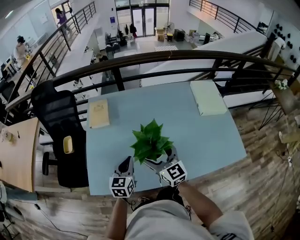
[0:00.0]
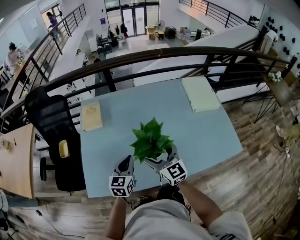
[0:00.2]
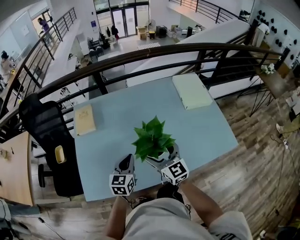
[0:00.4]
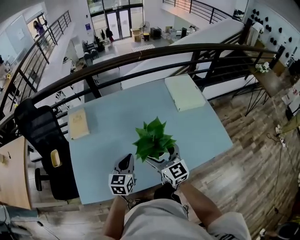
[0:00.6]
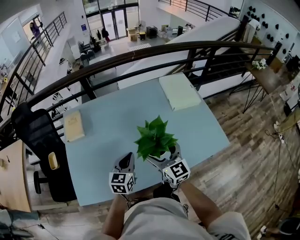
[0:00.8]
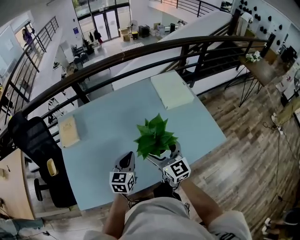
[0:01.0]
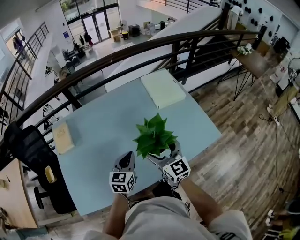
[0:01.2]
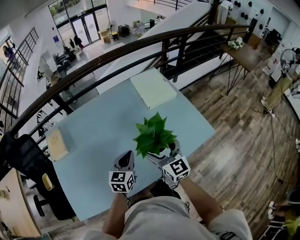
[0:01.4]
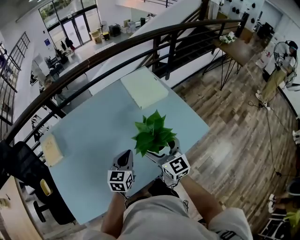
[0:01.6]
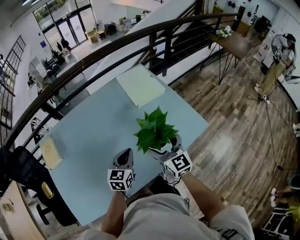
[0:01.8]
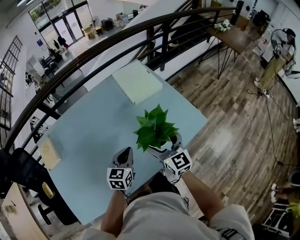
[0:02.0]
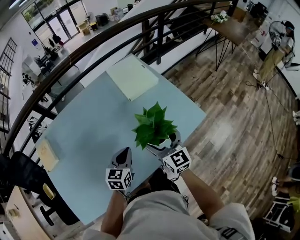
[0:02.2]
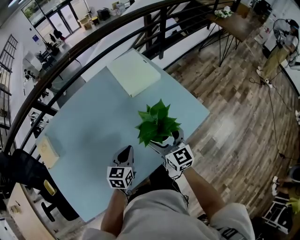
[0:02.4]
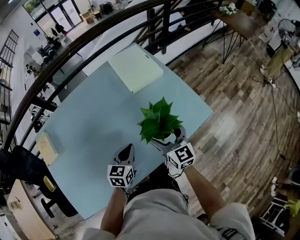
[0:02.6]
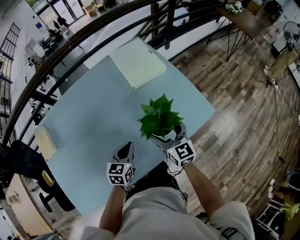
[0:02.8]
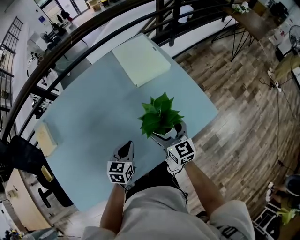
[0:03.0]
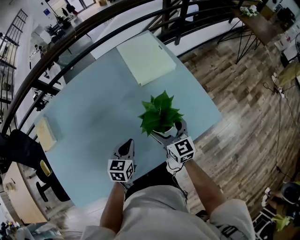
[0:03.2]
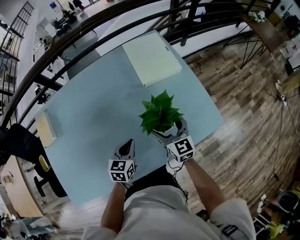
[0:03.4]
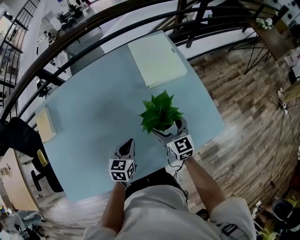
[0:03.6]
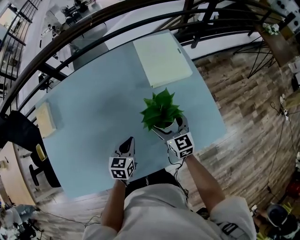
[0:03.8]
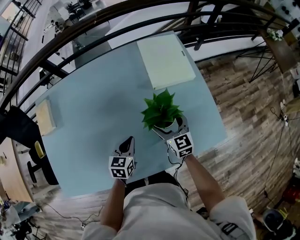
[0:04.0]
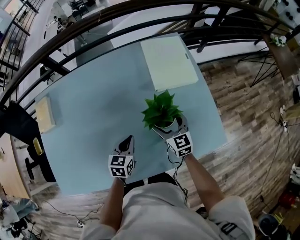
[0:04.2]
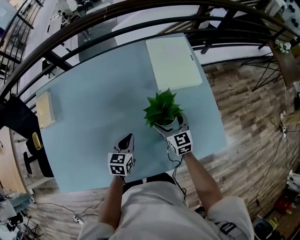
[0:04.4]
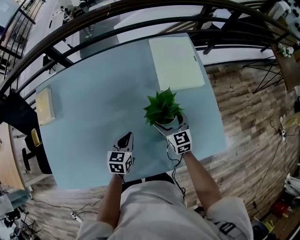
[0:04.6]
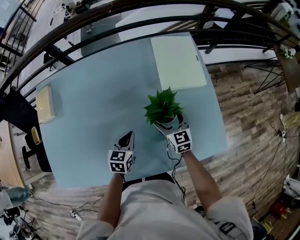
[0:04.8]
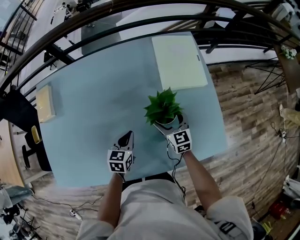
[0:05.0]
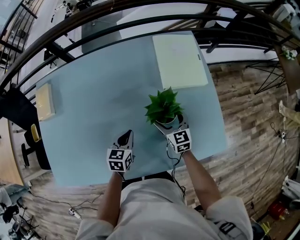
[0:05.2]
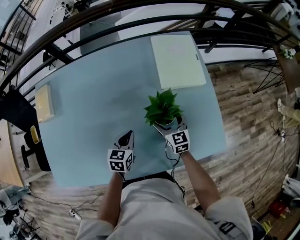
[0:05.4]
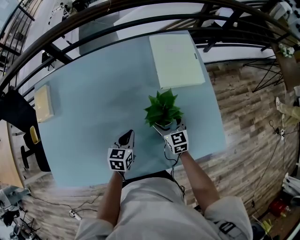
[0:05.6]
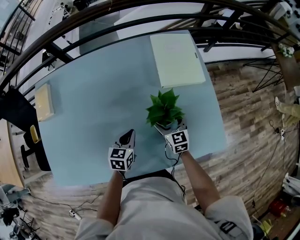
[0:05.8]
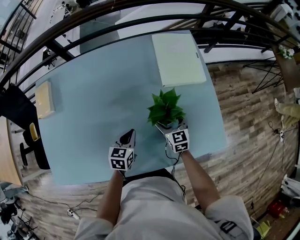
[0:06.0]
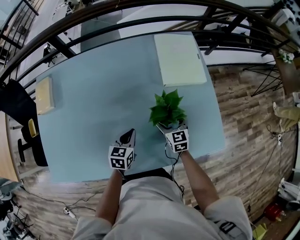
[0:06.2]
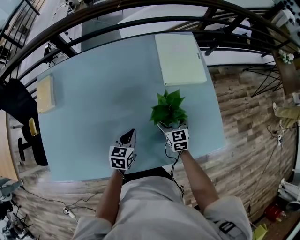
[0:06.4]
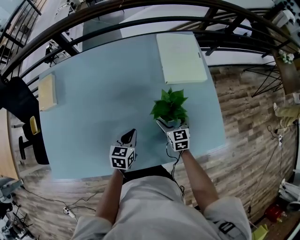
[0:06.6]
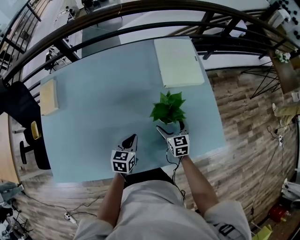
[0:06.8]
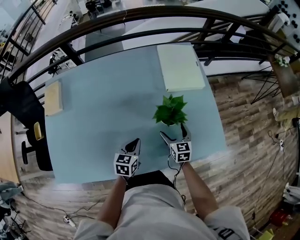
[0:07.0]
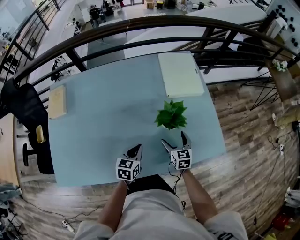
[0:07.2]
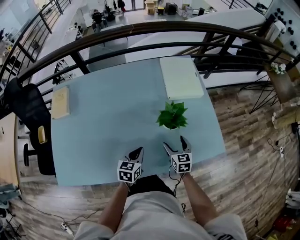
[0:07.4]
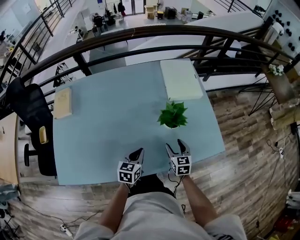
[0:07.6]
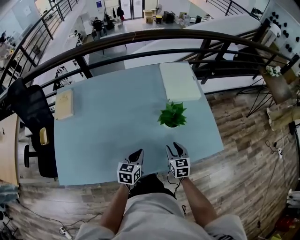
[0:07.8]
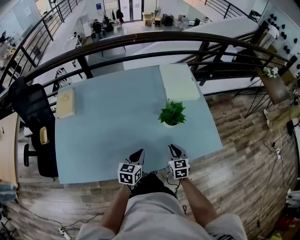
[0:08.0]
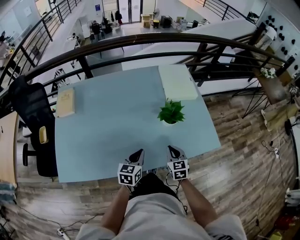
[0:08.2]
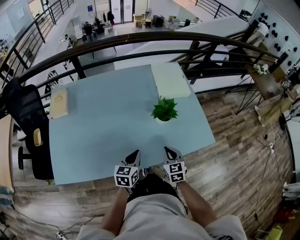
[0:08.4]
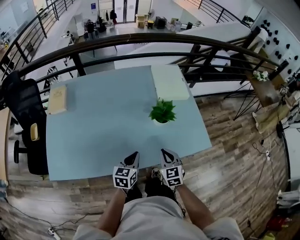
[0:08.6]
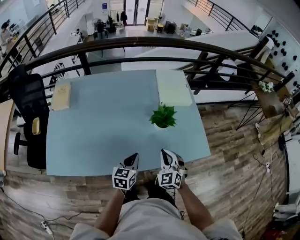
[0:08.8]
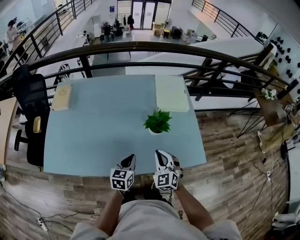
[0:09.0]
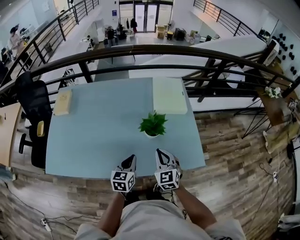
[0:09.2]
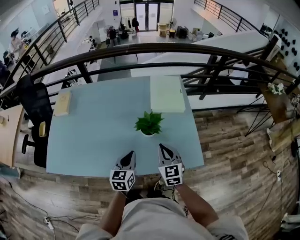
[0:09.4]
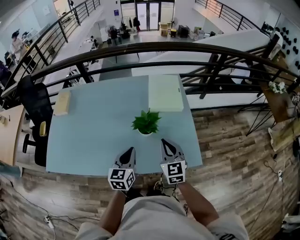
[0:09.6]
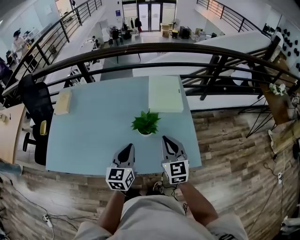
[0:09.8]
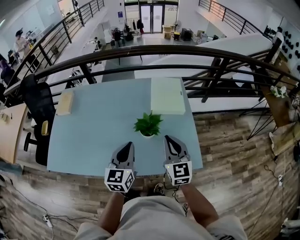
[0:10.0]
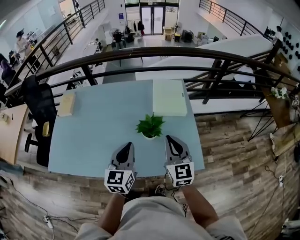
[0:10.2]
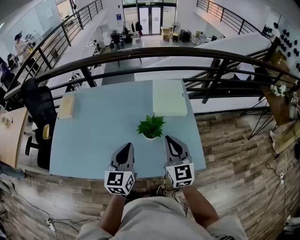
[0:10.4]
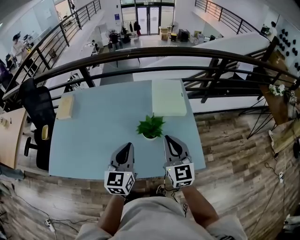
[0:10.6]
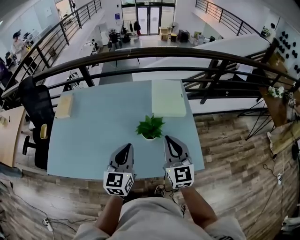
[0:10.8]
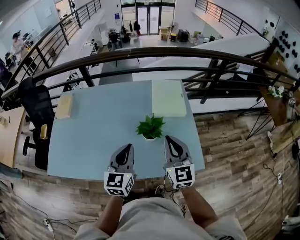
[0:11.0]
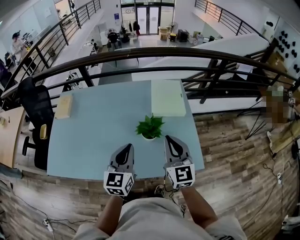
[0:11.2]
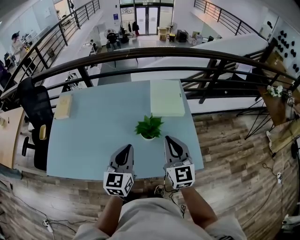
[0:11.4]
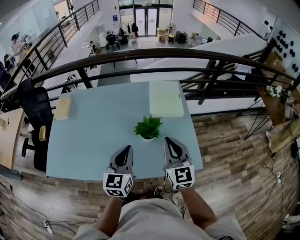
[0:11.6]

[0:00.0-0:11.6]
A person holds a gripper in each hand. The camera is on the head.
0:00.0 to 0:01.4: The right gripper moves about 30 cm, and turns by some 30 degrees, while the left gripper shifts by about 25 cm, and rotates about 30 degrees.
0:01.4 to 0:02.8: The right gripper heads to the right, downward and forward, covering about 15 cm; the left gripper travels downward and to the right by roughly 10 cm.
0:02.8 to 0:04.4: The right gripper shifts some 15 cm forward and downward, and changes its angle by some 20 degrees; the left gripper moves forward and downward, about 10 cm, and changes its angle by about 20 degrees.
0:04.4 to 0:05.8: The grippers move only a little.
0:05.8 to 0:07.2: The grippers both shift backward by some 10 cm.
0:07.2 to 0:08.8: The right gripper goes some 15 cm backward and upward, rotates around the line of its fingers by about 40 degrees, counterclockwise from behind, and closes up, while the left gripper travels backward and upward by approximately 10 cm.
0:08.8 to 0:10.2: The left gripper is displaced upward and to the right by roughly 20 cm, and turns by approximately 30 degrees, while the right gripper is displaced upward, to the right and forward by some 20 cm, and turns by some 40 degrees.
0:10.2 to 0:11.6: There are only small adjustments of the grippers.

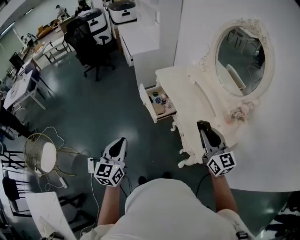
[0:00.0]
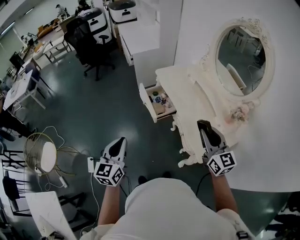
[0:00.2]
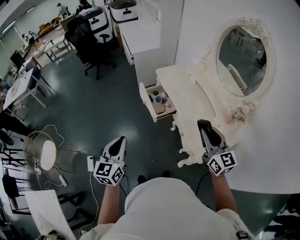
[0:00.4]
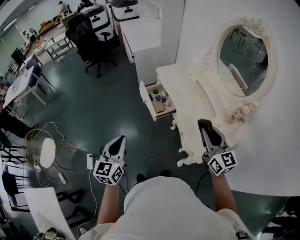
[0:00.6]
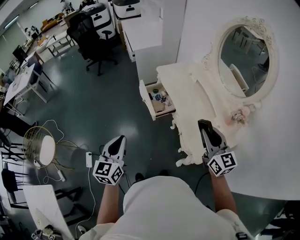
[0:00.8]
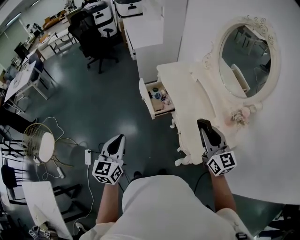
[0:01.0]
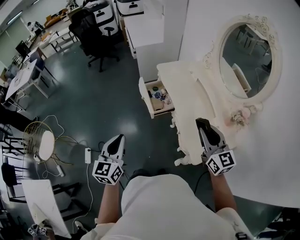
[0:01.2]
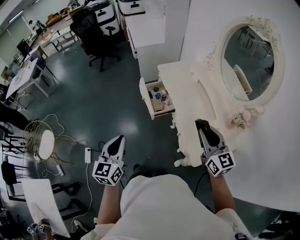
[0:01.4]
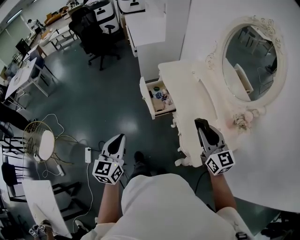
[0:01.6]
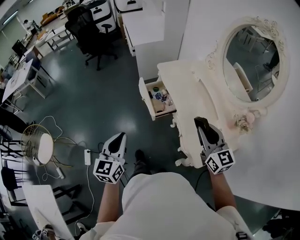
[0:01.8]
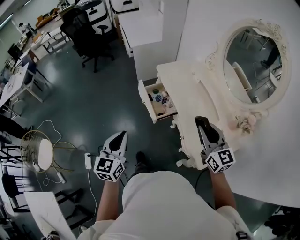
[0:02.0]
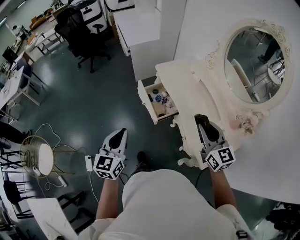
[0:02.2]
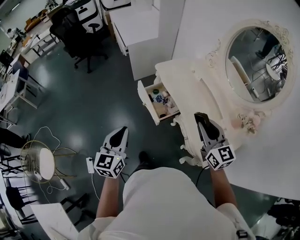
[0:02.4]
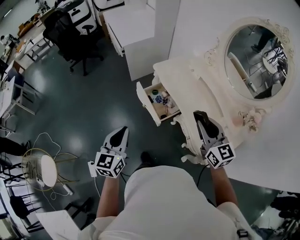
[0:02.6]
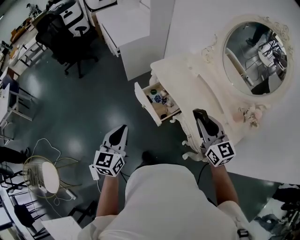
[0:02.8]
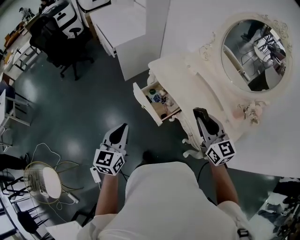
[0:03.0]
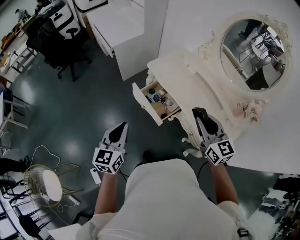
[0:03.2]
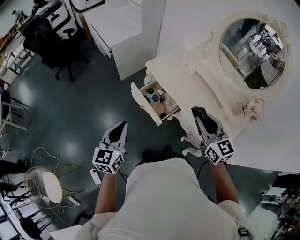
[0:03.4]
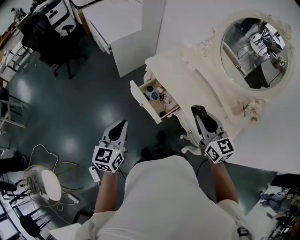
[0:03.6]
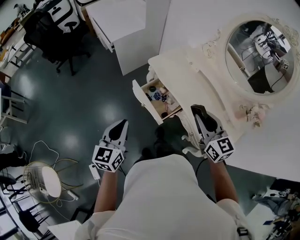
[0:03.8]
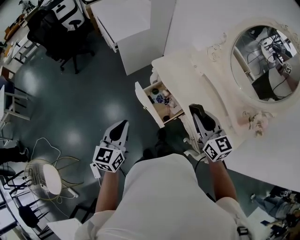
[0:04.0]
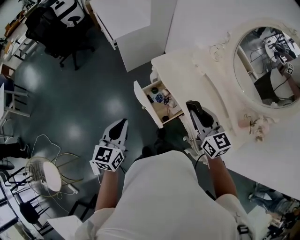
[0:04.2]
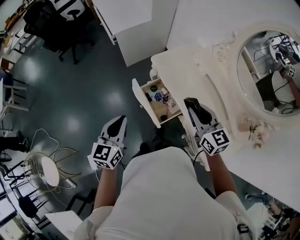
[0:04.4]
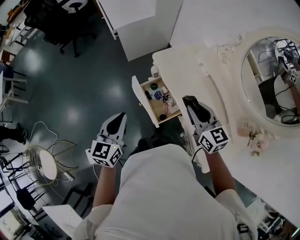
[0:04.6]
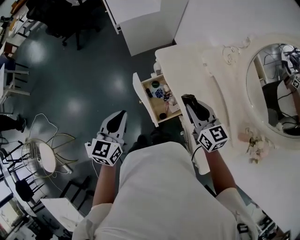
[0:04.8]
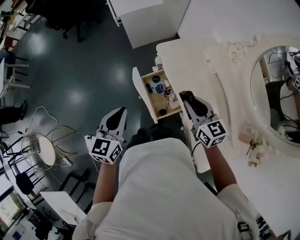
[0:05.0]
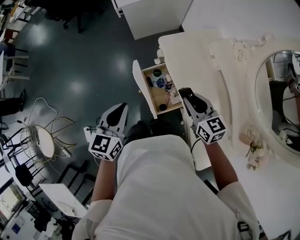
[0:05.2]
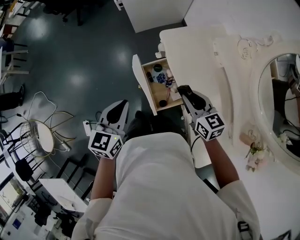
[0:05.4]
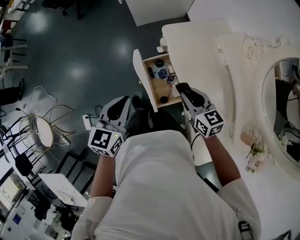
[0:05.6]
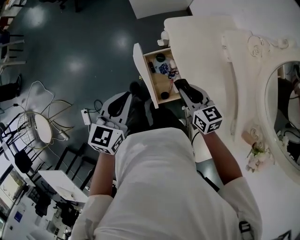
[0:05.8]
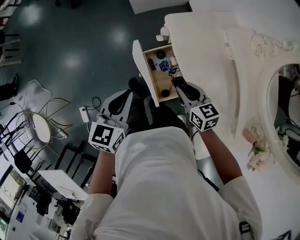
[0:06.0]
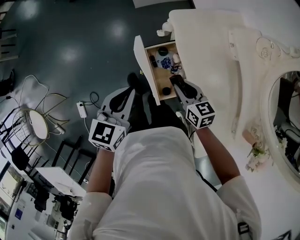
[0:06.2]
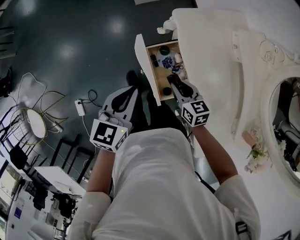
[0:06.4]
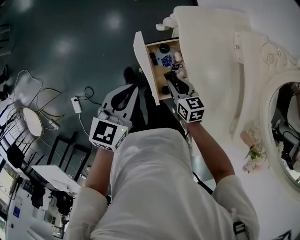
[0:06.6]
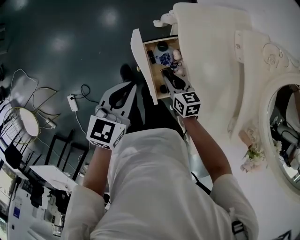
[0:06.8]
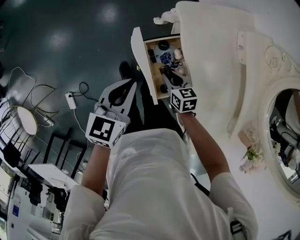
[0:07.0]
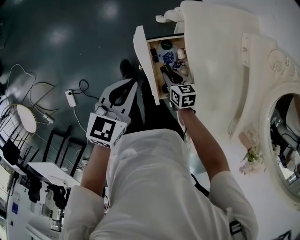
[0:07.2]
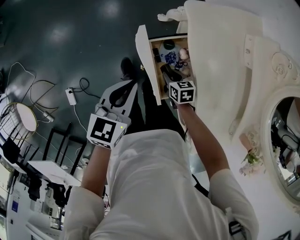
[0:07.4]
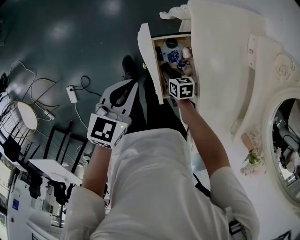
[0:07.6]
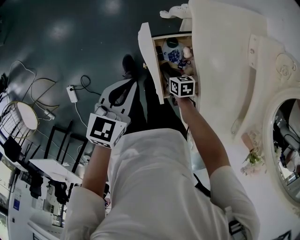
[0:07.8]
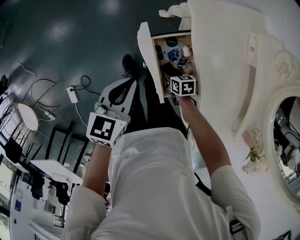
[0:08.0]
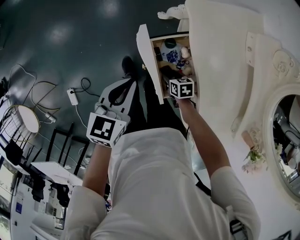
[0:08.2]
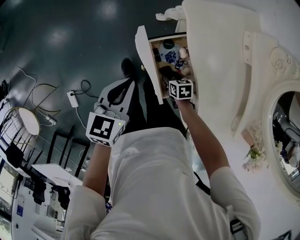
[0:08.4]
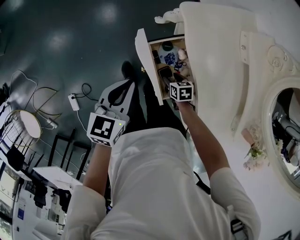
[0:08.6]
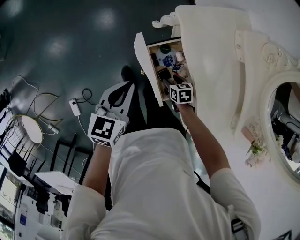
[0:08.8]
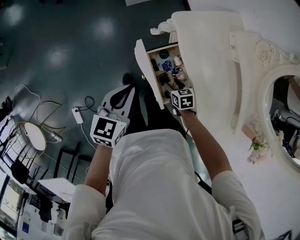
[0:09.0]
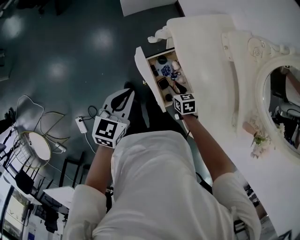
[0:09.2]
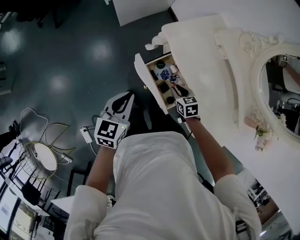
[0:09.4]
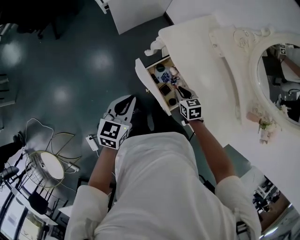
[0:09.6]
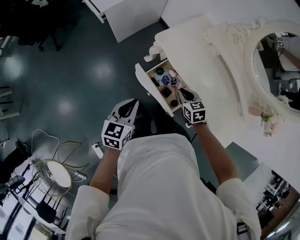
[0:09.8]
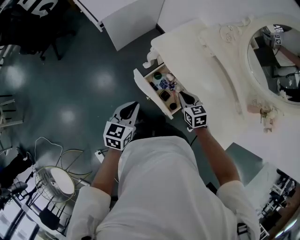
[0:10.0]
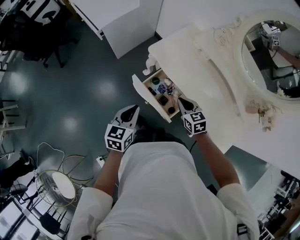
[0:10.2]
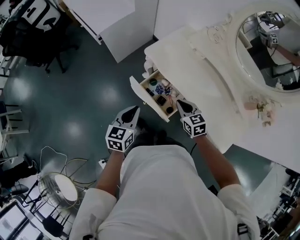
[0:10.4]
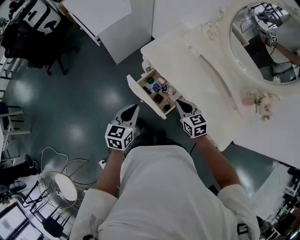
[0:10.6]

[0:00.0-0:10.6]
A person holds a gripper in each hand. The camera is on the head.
0:00.0 to 0:01.6: The left gripper changes place by some 5 cm. Meanwhile the right gripper changes place by approximately 5 cm.
0:01.6 to 0:03.0: The right gripper shifts roughly 20 cm to the left and forward. The left gripper travels forward and to the left by some 25 cm, and swivels some 20 degrees.
0:03.0 to 0:04.6: The left gripper is displaced forward by about 15 cm. The right gripper is displaced forward and downward by approximately 20 cm.
0:04.6 to 0:06.0: The right gripper heads downward, covering roughly 20 cm, and rotates some 30 degrees; the left gripper is displaced downward by some 10 cm.
0:06.0 to 0:07.6: The right gripper shifts about 25 cm downward, and rotates about 30 degrees. The left gripper shifts approximately 10 cm downward.
0:07.6 to 0:09.0: The right gripper is displaced upward by some 5 cm, and opens.
0:09.0 to 0:10.6: The right gripper is displaced upward by about 25 cm, swivels about 40 degrees, and closes. The left gripper moves about 10 cm.

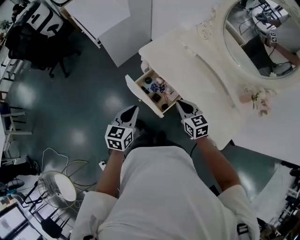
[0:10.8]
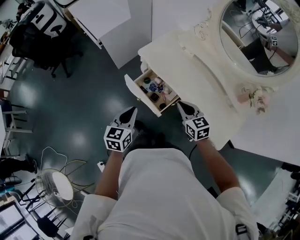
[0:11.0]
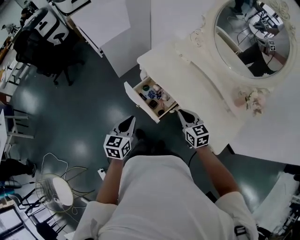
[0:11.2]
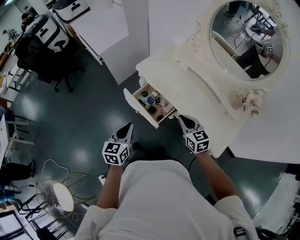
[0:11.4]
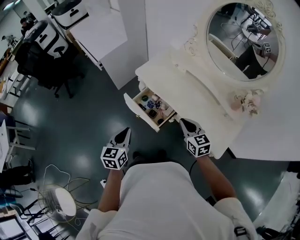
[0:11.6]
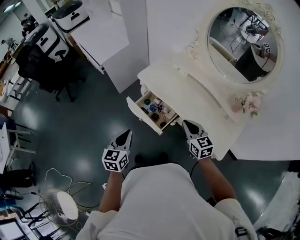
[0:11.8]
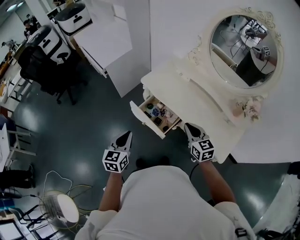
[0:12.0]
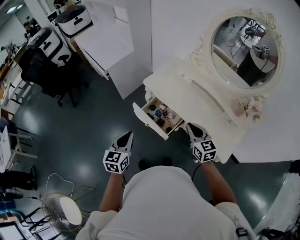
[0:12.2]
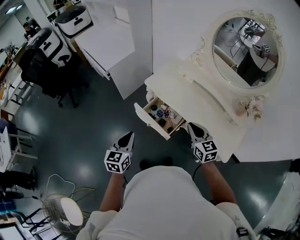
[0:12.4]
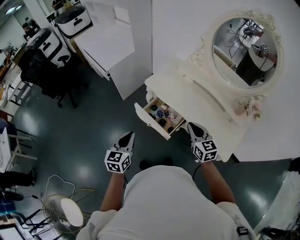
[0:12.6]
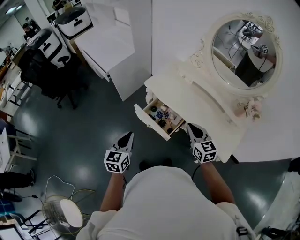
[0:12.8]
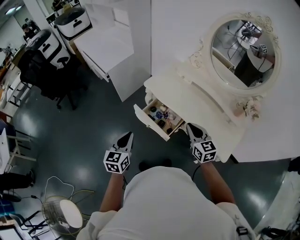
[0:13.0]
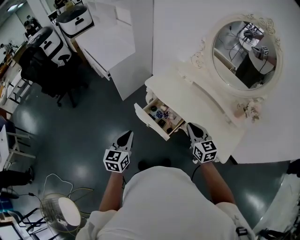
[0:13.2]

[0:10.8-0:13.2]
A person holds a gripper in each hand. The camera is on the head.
0:10.8 to 0:12.0: The left gripper travels backward by some 5 cm. Meanwhile the right gripper heads upward and backward, covering approximately 10 cm.
0:12.0 to 0:13.2: The grippers move only a little.
